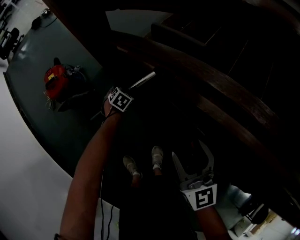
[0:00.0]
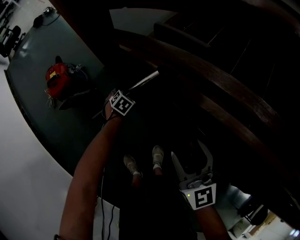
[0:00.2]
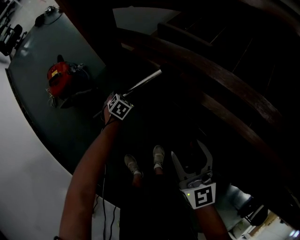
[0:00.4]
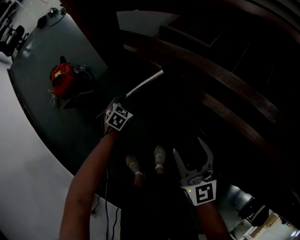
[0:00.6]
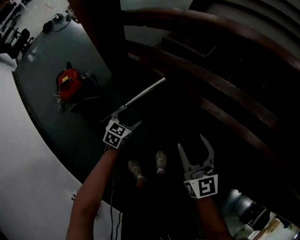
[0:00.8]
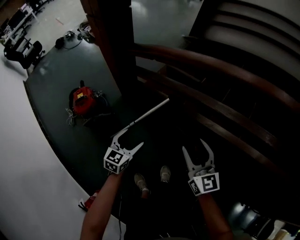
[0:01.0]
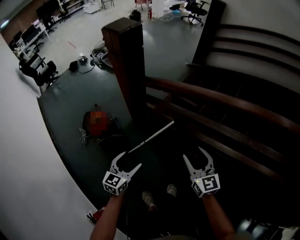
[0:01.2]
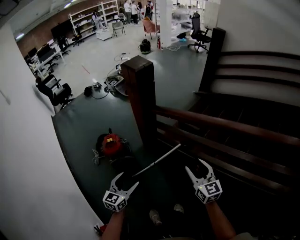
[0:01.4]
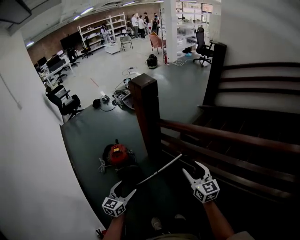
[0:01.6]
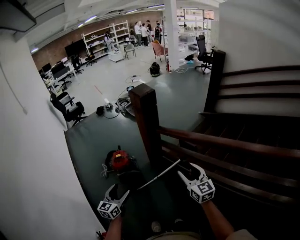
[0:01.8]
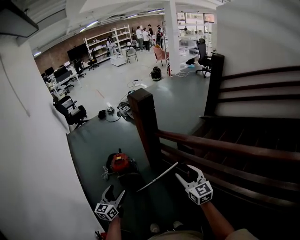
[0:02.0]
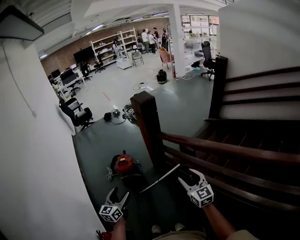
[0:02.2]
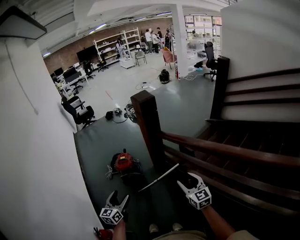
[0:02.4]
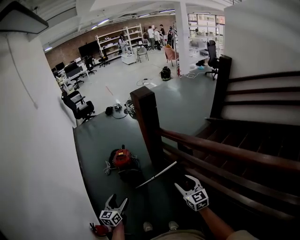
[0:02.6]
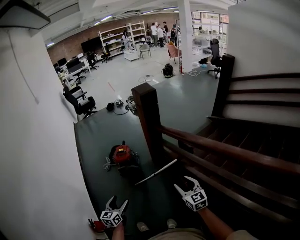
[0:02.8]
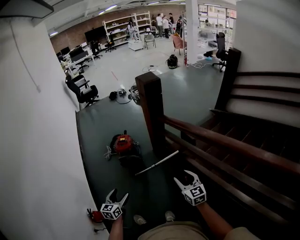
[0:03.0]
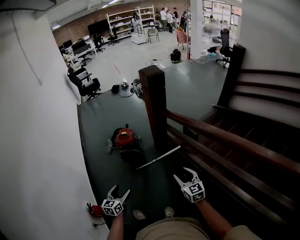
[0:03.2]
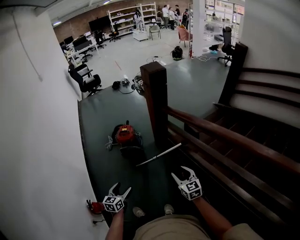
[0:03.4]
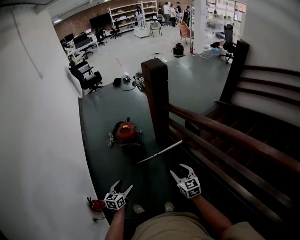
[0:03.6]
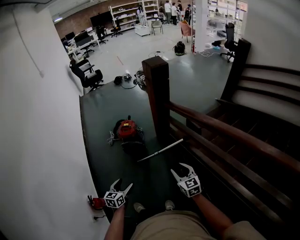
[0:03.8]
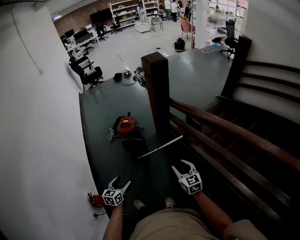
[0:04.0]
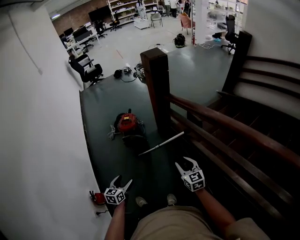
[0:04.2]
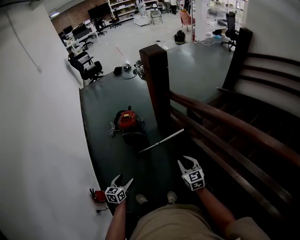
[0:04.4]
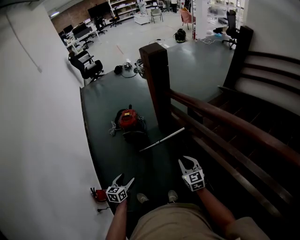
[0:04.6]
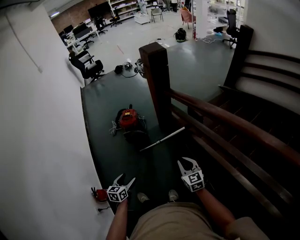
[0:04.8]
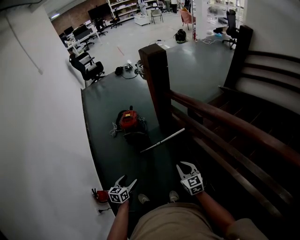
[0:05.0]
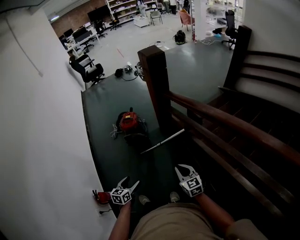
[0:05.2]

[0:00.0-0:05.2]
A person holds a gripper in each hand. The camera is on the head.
0:00.0 to 0:01.8: The left gripper shifts about 60 cm upward, and tilts its fingers roughly 50 degrees upward; the right gripper heads upward, covering some 30 cm.
0:01.8 to 0:03.4: The right gripper shifts roughly 15 cm downward, while the left gripper shifts about 20 cm downward and backward, and changes its angle by roughly 20 degrees.
0:03.4 to 0:05.2: The left gripper ends up some 5 cm from where it was. The right gripper closes up.

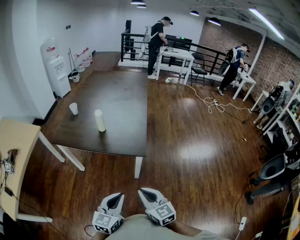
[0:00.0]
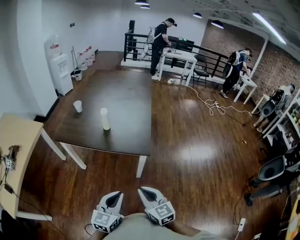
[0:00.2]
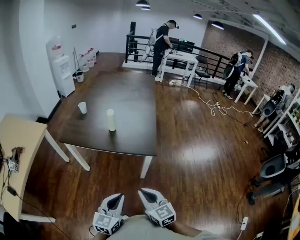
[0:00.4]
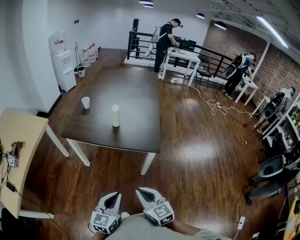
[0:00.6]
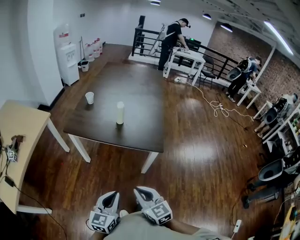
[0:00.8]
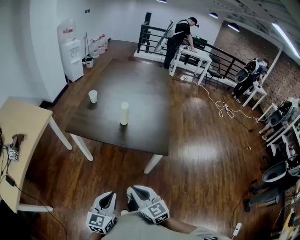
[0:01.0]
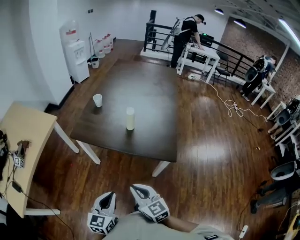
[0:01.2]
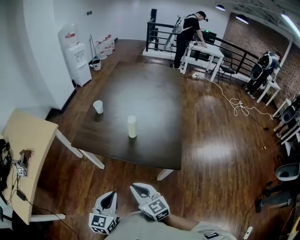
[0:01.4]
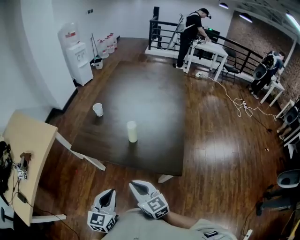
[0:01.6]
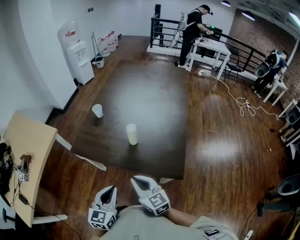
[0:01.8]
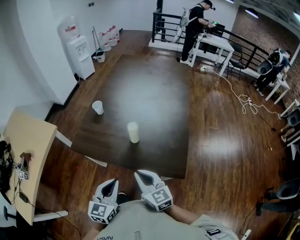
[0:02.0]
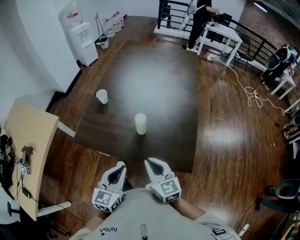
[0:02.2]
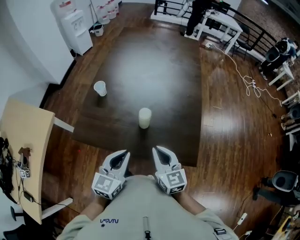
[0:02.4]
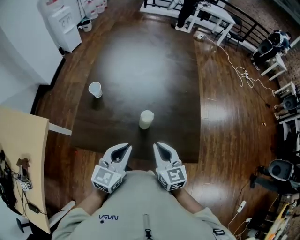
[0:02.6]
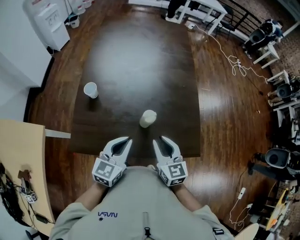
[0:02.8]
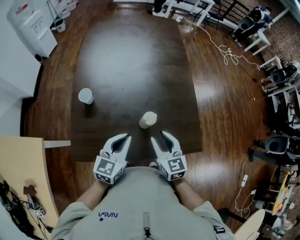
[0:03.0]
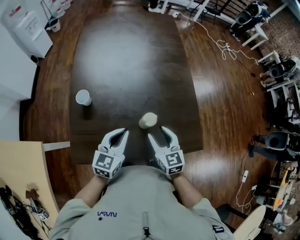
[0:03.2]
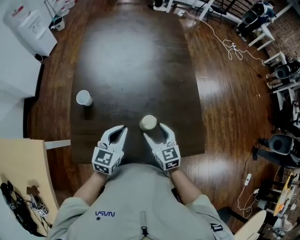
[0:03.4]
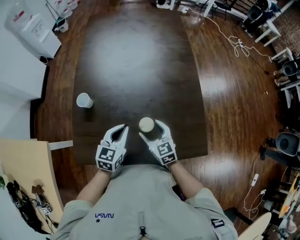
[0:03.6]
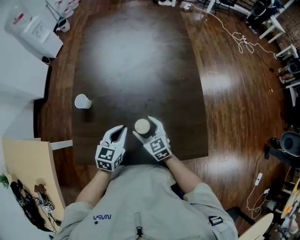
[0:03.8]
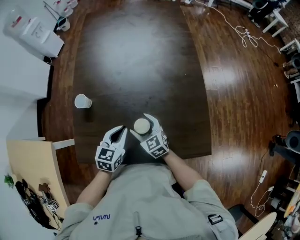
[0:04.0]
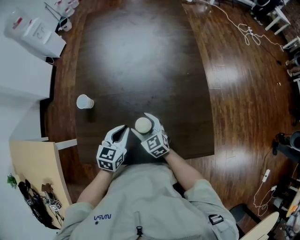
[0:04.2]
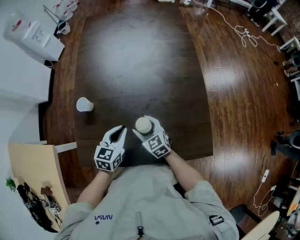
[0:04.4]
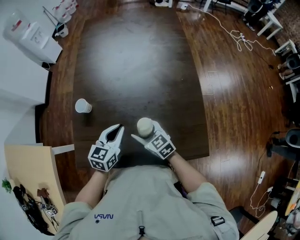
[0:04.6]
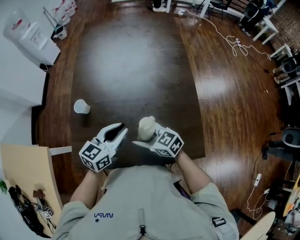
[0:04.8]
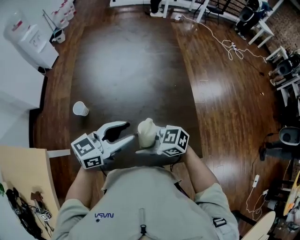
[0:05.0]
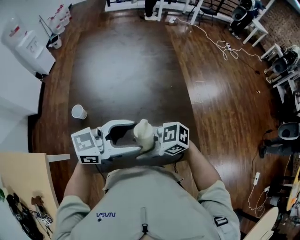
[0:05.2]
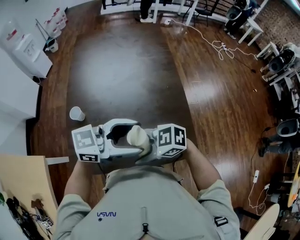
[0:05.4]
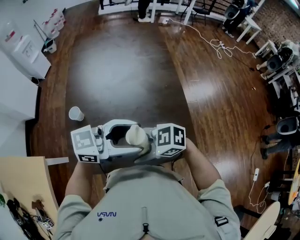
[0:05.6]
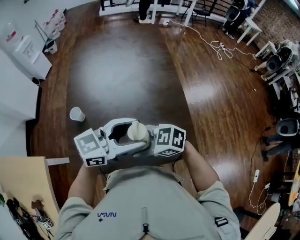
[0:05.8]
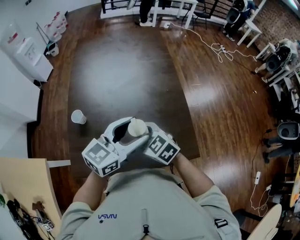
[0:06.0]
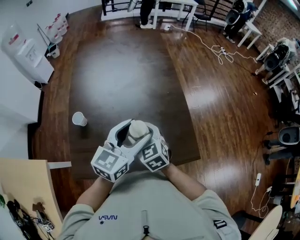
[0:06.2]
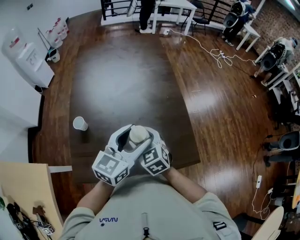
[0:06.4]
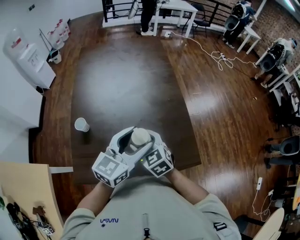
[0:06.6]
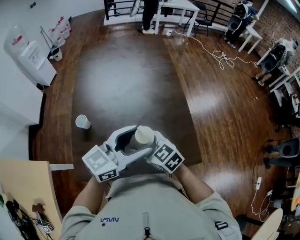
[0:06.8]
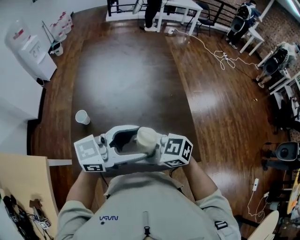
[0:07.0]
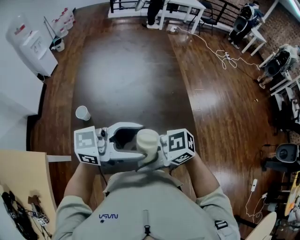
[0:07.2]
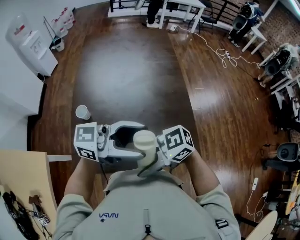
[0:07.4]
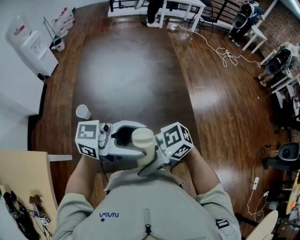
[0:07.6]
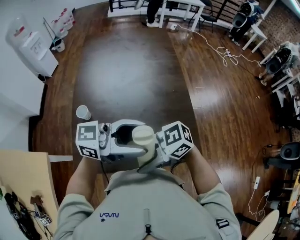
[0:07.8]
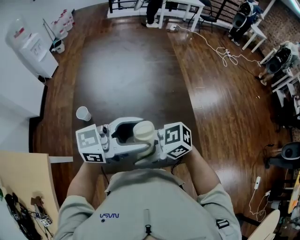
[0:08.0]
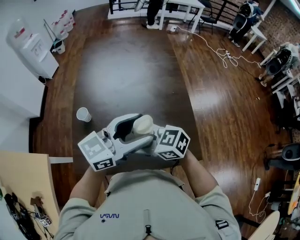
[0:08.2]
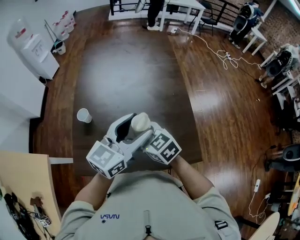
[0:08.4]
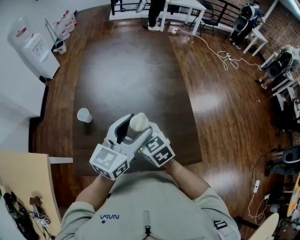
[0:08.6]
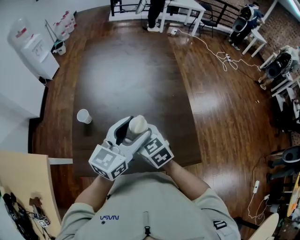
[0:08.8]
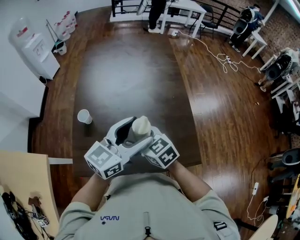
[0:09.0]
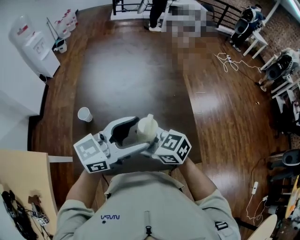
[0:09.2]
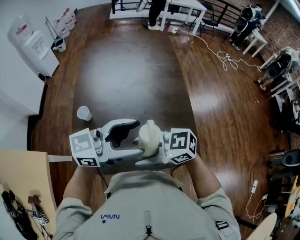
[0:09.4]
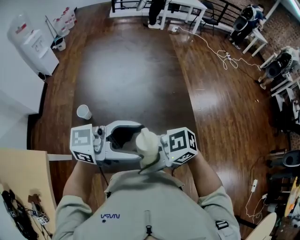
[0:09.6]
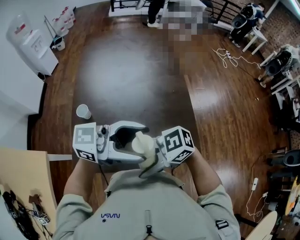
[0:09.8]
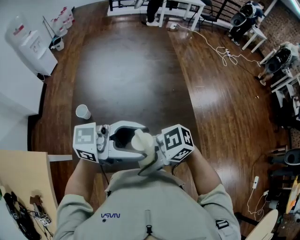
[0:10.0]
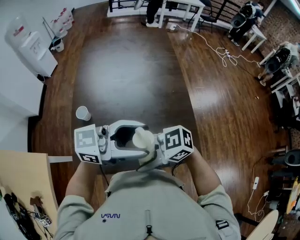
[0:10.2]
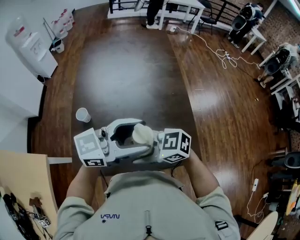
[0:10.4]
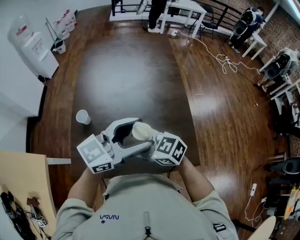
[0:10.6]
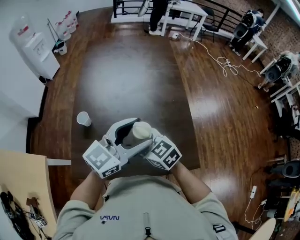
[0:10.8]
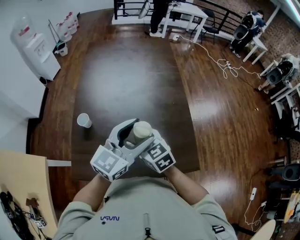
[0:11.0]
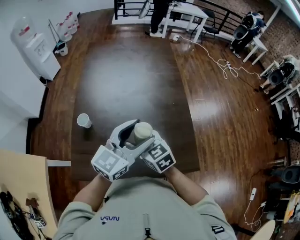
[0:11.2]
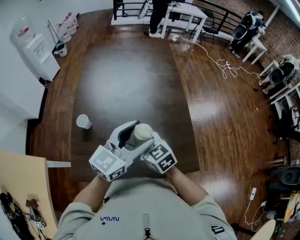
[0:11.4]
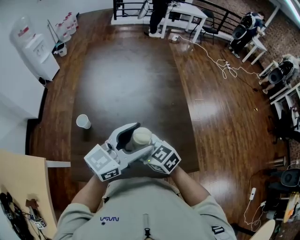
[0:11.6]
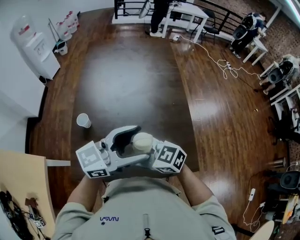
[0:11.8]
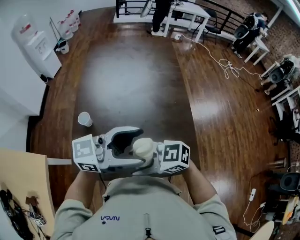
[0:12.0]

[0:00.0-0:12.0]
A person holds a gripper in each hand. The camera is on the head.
0:00.0 to 0:01.6: The left gripper is displaced to the left and forward by about 25 cm. The right gripper goes roughly 25 cm forward and to the left.
0:01.6 to 0:03.0: The right gripper shifts by approximately 20 cm, rotates about 40 degrees, and opens its fingers. Meanwhile the left gripper moves about 25 cm, and turns by some 30 degrees.
0:03.0 to 0:04.4: The left gripper travels downward and forward by about 10 cm; the right gripper heads downward, to the left and forward, covering about 15 cm, swivels about 20 degrees, and opens its fingers.
0:04.4 to 0:06.0: The grippers both shift upward by some 15 cm. The left gripper rotates some 40 degrees, and opens its fingers.
0:06.0 to 0:07.6: The left gripper shifts by some 10 cm, and turns by roughly 40 degrees. The right gripper shifts by approximately 15 cm, and rotates approximately 60 degrees.
0:07.6 to 0:09.0: The left gripper moves roughly 5 cm, and turns by about 50 degrees. The right gripper shifts by about 15 cm, and rotates roughly 60 degrees.
0:09.0 to 0:10.4: The left gripper rotates some 30 degrees, while the right gripper changes its angle by some 40 degrees.

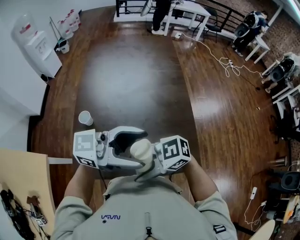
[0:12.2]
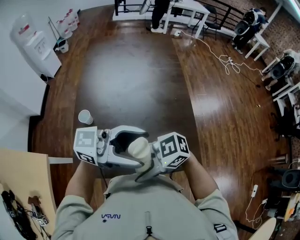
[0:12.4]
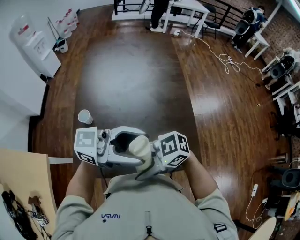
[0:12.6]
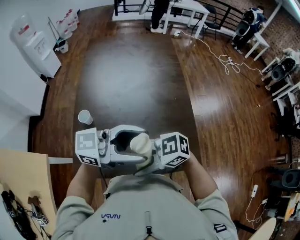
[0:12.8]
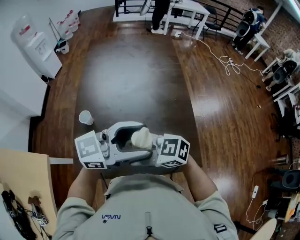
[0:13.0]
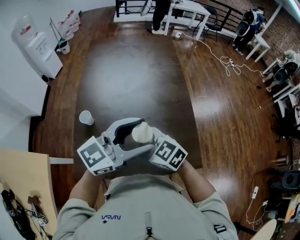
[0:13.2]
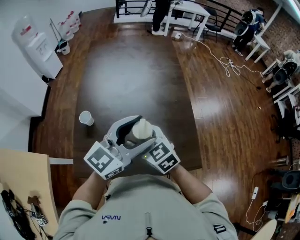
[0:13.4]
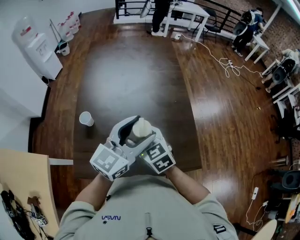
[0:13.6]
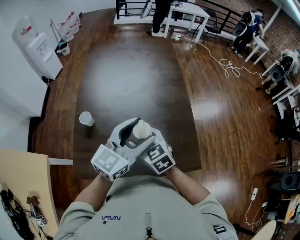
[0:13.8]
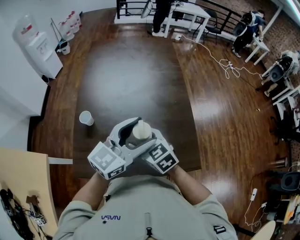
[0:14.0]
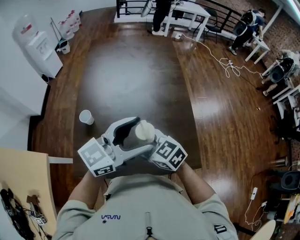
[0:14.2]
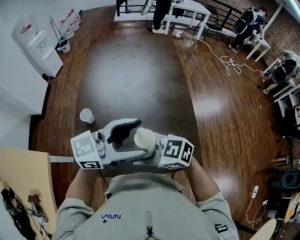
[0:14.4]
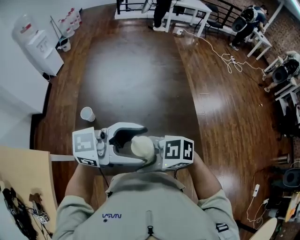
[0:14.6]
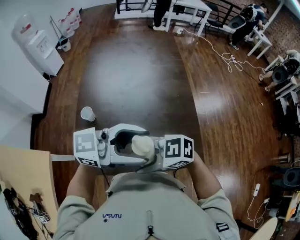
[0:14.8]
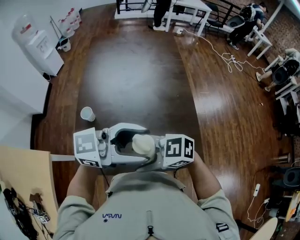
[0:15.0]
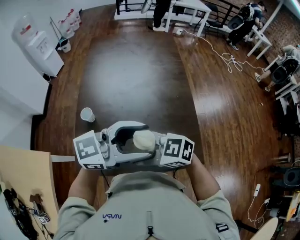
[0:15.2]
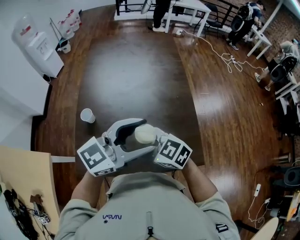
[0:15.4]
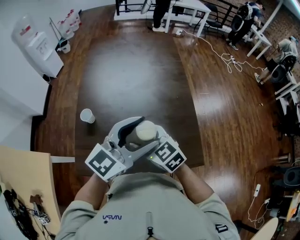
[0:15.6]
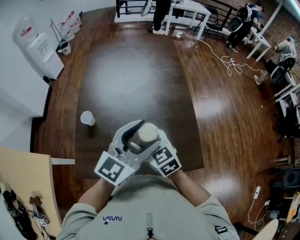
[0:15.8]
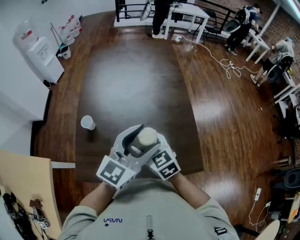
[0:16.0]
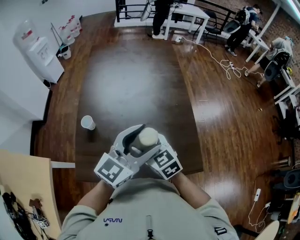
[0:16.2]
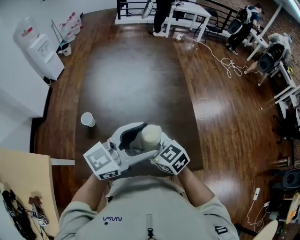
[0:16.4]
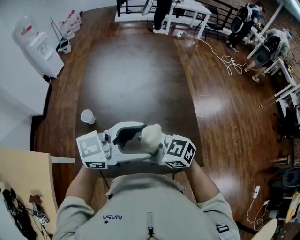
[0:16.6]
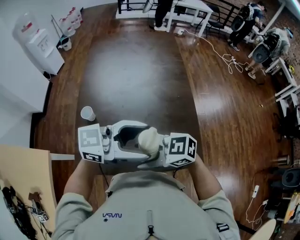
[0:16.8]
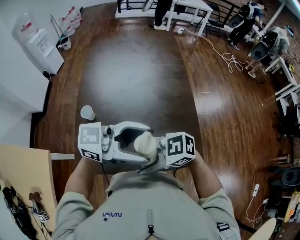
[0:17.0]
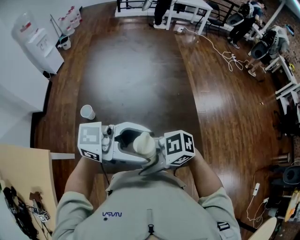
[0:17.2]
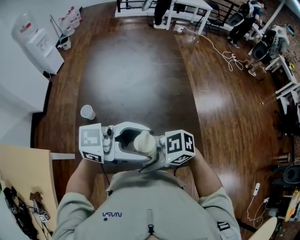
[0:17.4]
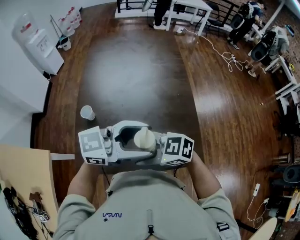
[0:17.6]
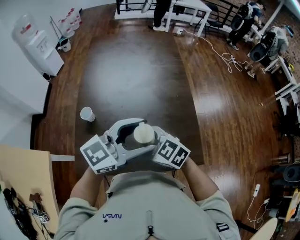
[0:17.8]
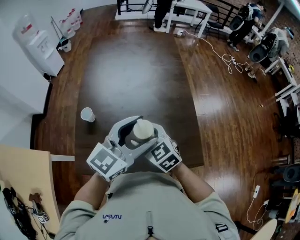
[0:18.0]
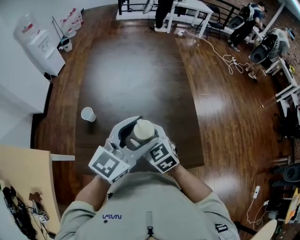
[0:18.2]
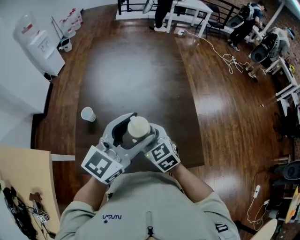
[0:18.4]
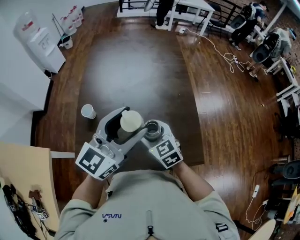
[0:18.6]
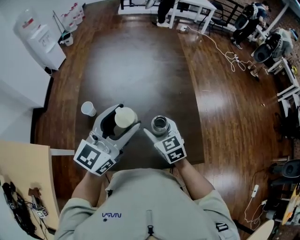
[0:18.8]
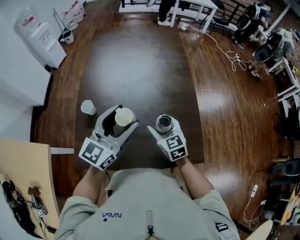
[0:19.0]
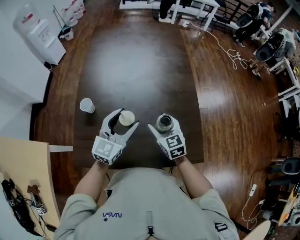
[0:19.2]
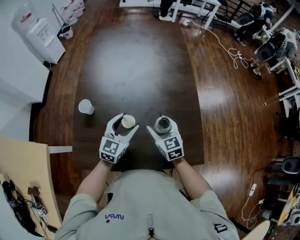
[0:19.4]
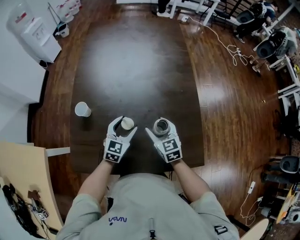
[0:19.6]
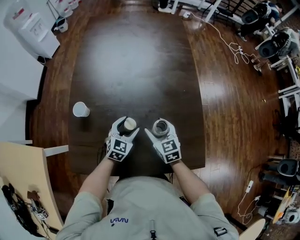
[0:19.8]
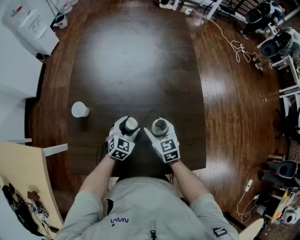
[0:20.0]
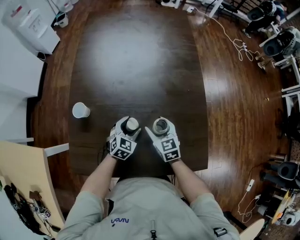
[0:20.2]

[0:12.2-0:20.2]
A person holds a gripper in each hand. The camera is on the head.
0:12.2 to 0:13.8: The right gripper ends up some 15 cm from where it was, and changes its angle by about 70 degrees, while the left gripper ends up some 10 cm from where it was, and rotates some 50 degrees.
0:13.8 to 0:15.4: The right gripper changes its angle by approximately 30 degrees.
0:15.4 to 0:17.0: The left gripper turns by approximately 30 degrees; the right gripper moves roughly 10 cm, and changes its angle by some 30 degrees.
0:17.0 to 0:18.6: The right gripper shifts by roughly 15 cm, and changes its angle by roughly 60 degrees; the left gripper shifts by roughly 10 cm, and turns by roughly 50 degrees.
0:18.6 to 0:20.2: The left gripper moves downward, approximately 40 cm, and angles its fingers downward, by some 50 degrees; the right gripper travels downward by about 15 cm.
